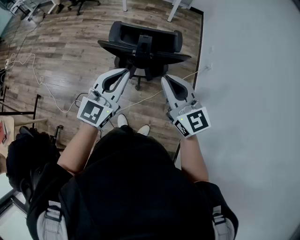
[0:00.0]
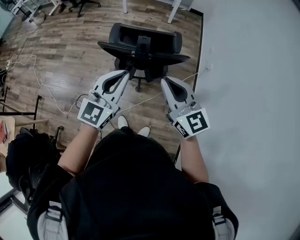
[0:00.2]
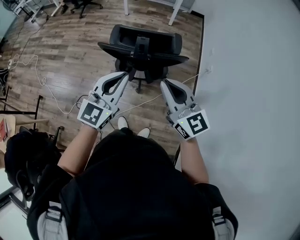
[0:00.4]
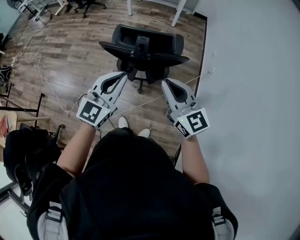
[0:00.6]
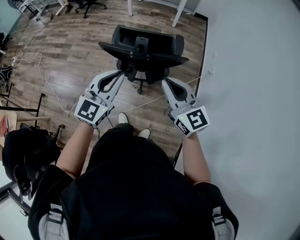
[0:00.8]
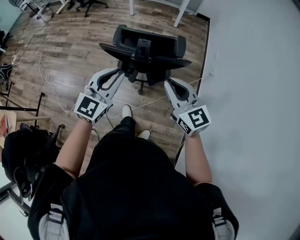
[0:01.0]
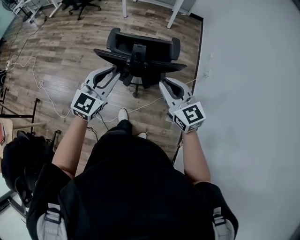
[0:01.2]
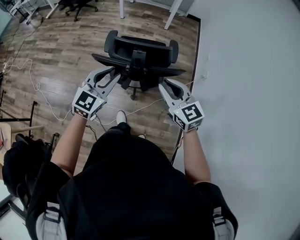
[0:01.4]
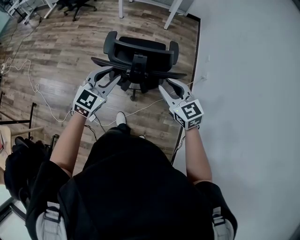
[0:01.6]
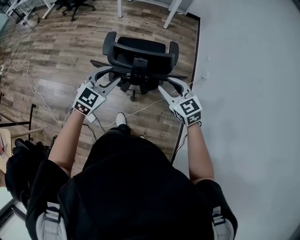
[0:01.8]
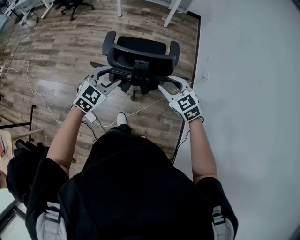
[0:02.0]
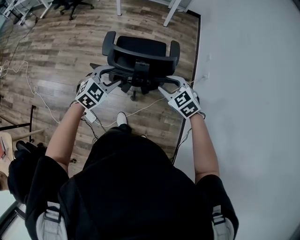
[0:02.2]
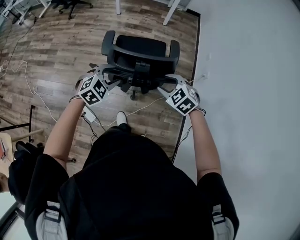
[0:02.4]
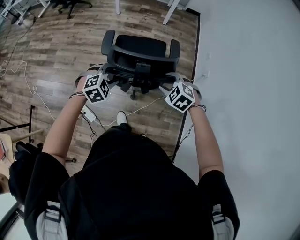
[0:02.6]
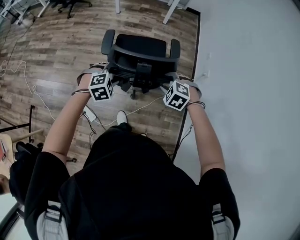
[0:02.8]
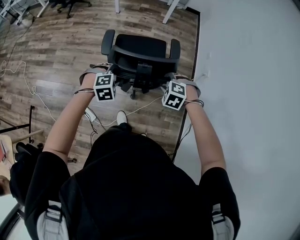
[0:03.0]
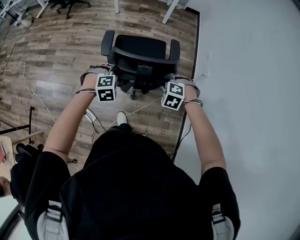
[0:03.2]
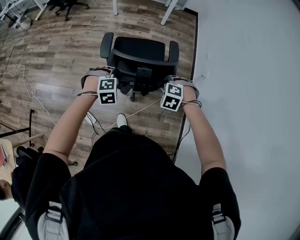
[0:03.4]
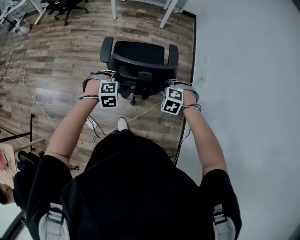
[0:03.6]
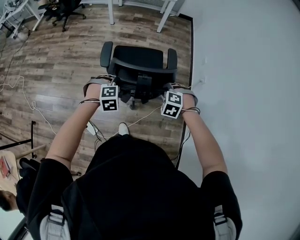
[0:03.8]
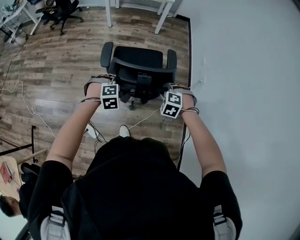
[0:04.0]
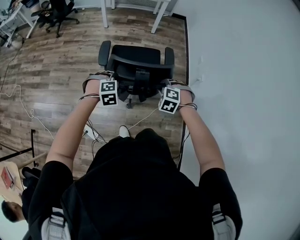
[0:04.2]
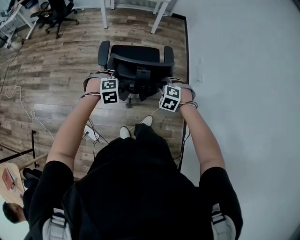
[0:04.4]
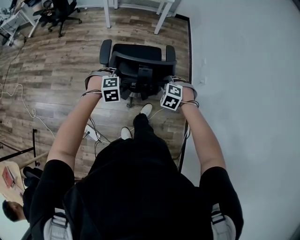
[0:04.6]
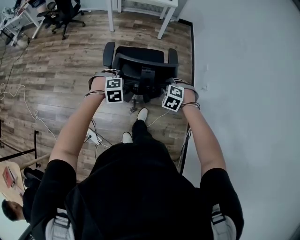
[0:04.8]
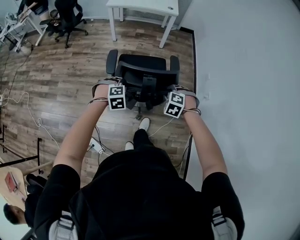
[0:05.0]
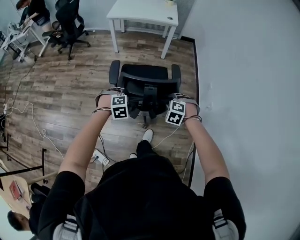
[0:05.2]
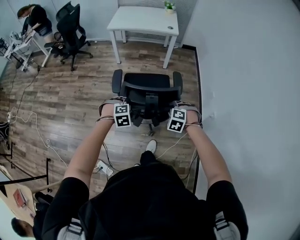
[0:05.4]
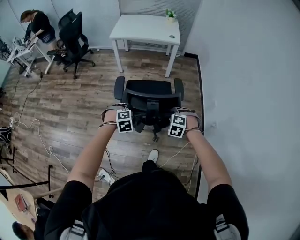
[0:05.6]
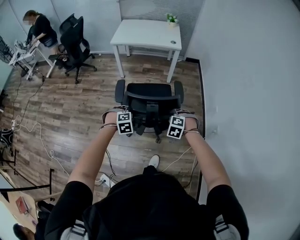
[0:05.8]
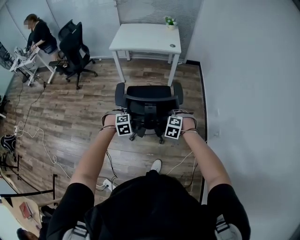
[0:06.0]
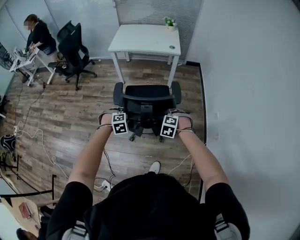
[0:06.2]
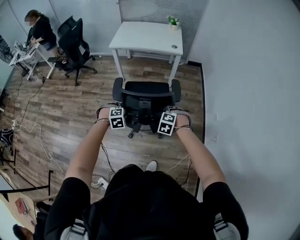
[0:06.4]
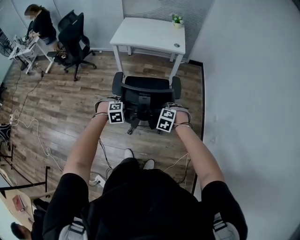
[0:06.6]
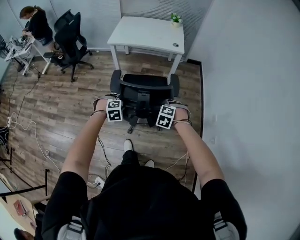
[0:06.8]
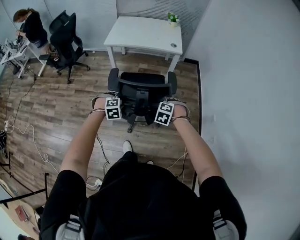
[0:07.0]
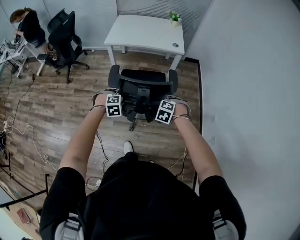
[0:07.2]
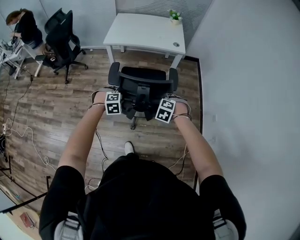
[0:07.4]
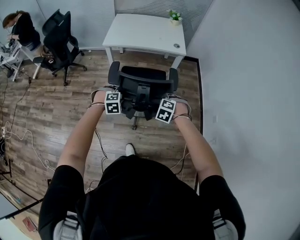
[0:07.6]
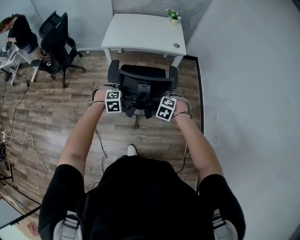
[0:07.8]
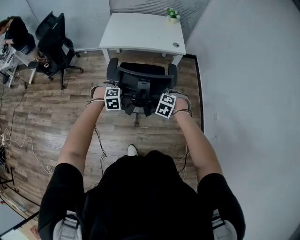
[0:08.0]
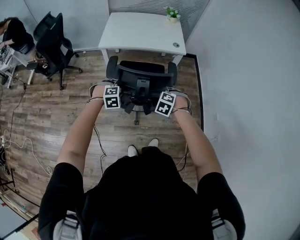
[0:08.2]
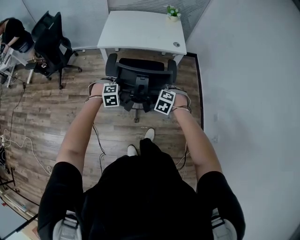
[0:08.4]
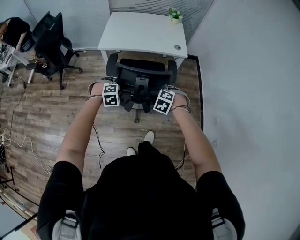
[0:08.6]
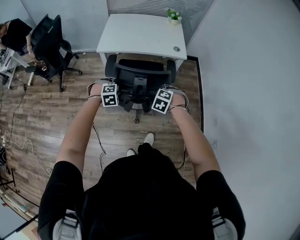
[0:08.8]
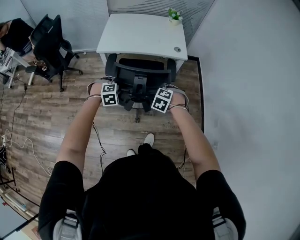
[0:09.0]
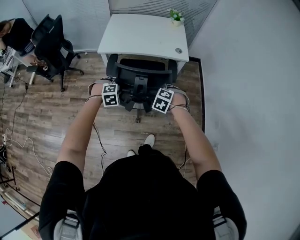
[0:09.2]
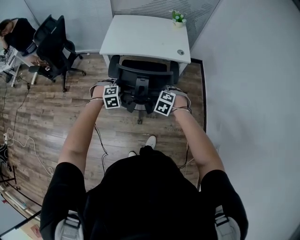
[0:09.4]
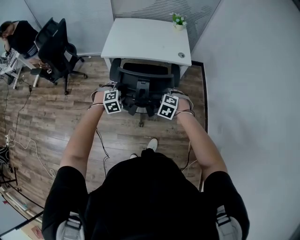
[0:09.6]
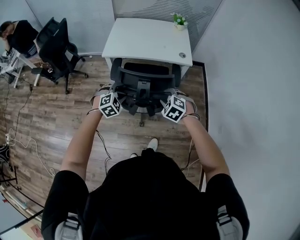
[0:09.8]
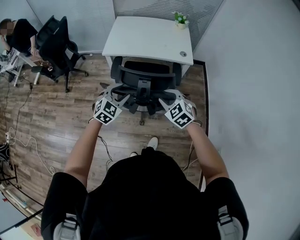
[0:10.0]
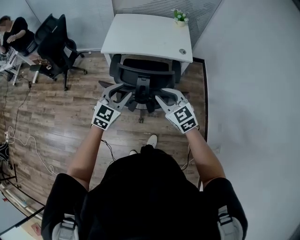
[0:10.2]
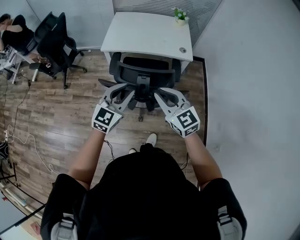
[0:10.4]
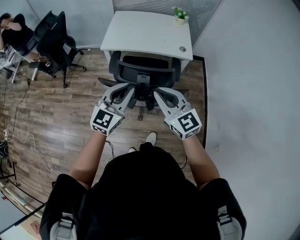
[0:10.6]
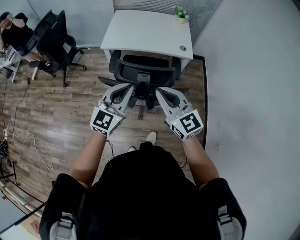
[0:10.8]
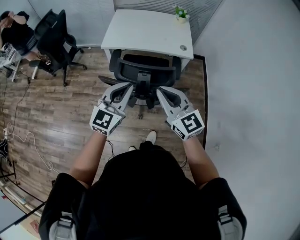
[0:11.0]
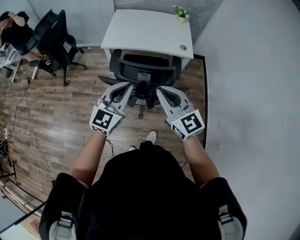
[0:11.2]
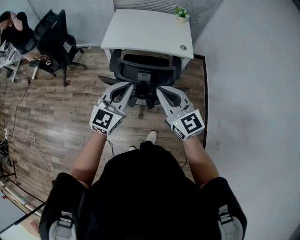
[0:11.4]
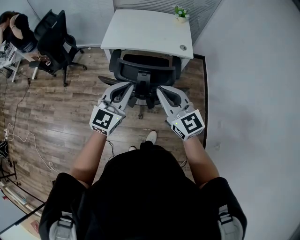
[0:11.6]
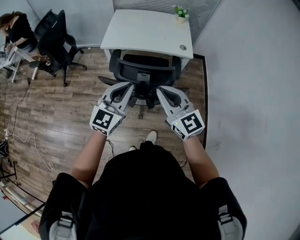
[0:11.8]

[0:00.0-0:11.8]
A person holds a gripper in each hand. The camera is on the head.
0:00.0 to 0:01.4: Both grippers move forward and downward, about 10 cm. The left gripper opens.
0:01.4 to 0:03.0: The grippers both shift downward and forward by approximately 20 cm. The right gripper angles its fingers downward, by some 50 degrees, and opens; the left gripper points its fingers roughly 50 degrees further downward, and opens up.
0:03.0 to 0:04.4: The two grippers go some 5 cm forward. The left gripper closes up.
0:04.4 to 0:06.0: Both grippers move forward, some 30 cm.
0:06.0 to 0:07.4: Both grippers travel together forward and to the left, about 25 cm.
0:07.4 to 0:08.8: The grippers both shift forward and to the left by some 20 cm.
0:08.8 to 0:10.4: Both grippers travel together upward, roughly 20 cm. The right gripper angles its fingers upward, by approximately 50 degrees, while the left gripper angles its fingers upward, by about 50 degrees.
0:10.4 to 0:11.8: The left gripper closes its fingers, while the right gripper moves some 5 cm.

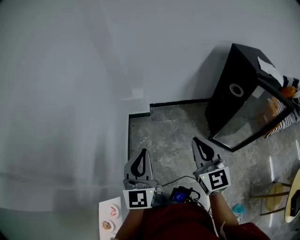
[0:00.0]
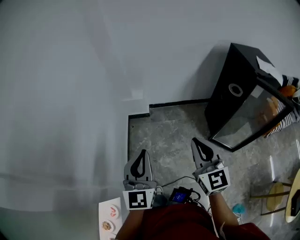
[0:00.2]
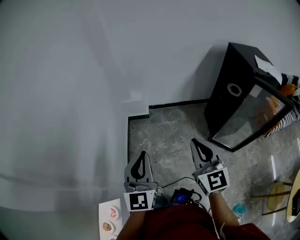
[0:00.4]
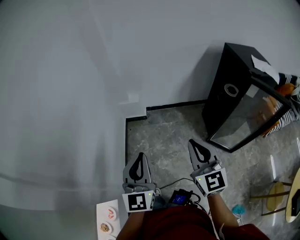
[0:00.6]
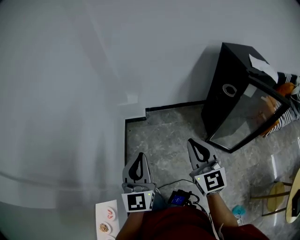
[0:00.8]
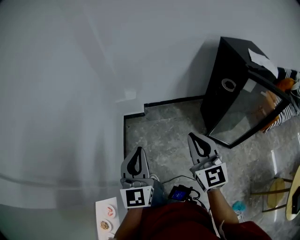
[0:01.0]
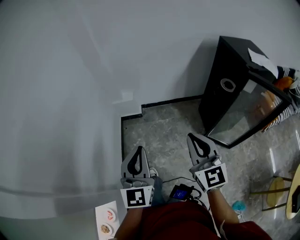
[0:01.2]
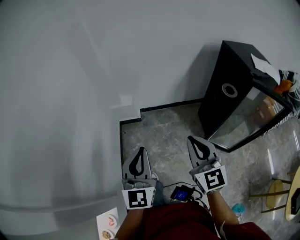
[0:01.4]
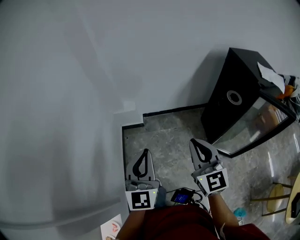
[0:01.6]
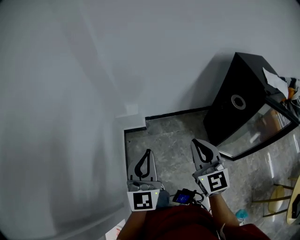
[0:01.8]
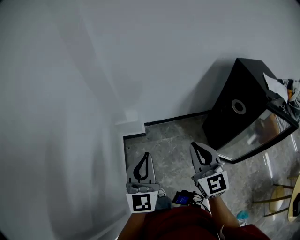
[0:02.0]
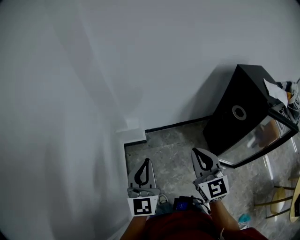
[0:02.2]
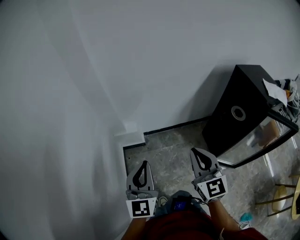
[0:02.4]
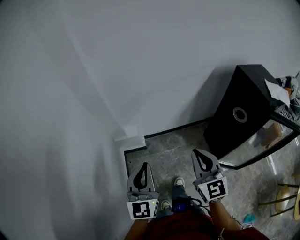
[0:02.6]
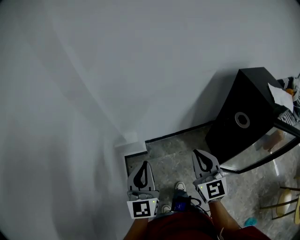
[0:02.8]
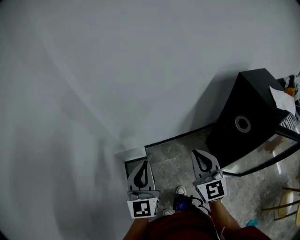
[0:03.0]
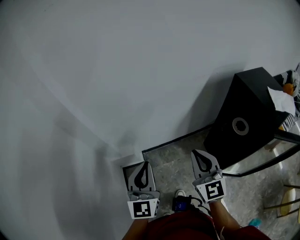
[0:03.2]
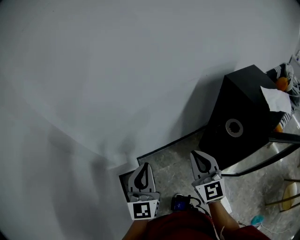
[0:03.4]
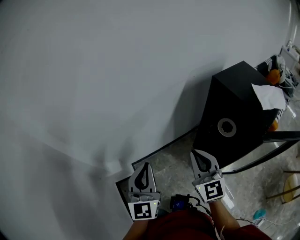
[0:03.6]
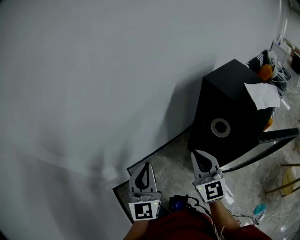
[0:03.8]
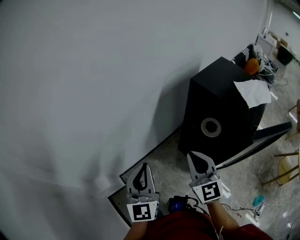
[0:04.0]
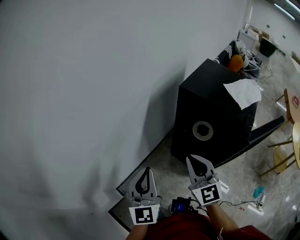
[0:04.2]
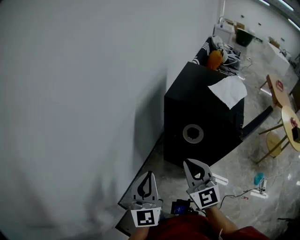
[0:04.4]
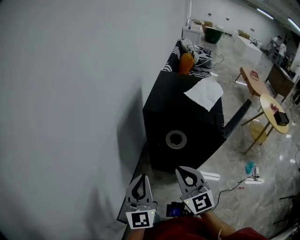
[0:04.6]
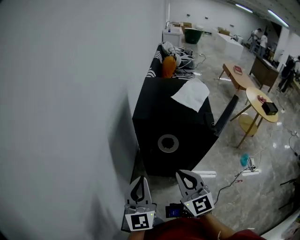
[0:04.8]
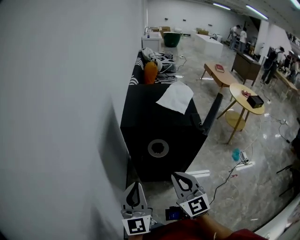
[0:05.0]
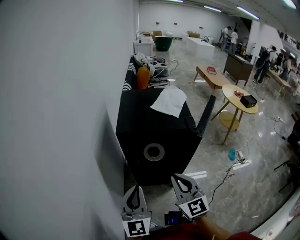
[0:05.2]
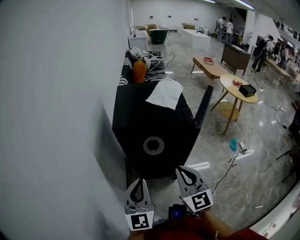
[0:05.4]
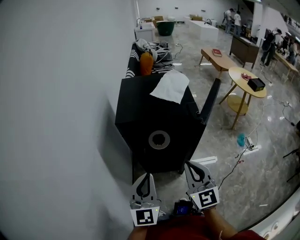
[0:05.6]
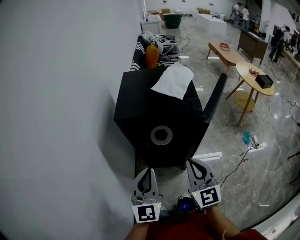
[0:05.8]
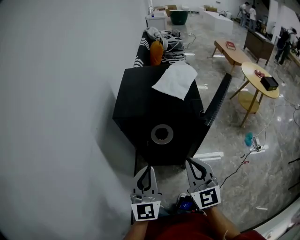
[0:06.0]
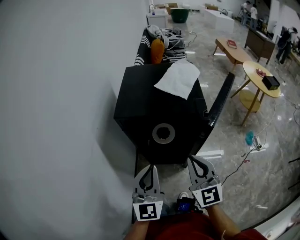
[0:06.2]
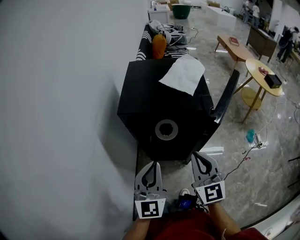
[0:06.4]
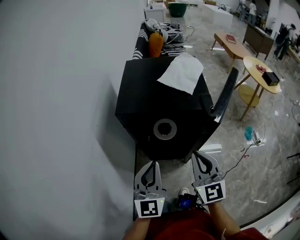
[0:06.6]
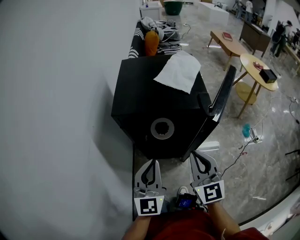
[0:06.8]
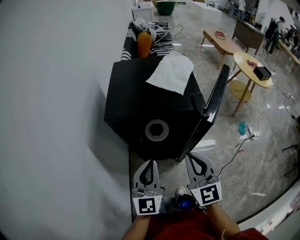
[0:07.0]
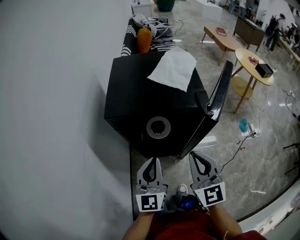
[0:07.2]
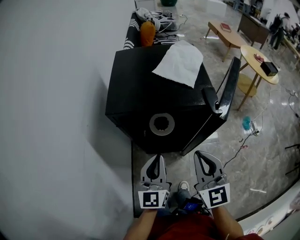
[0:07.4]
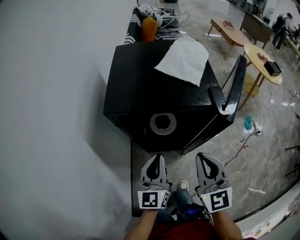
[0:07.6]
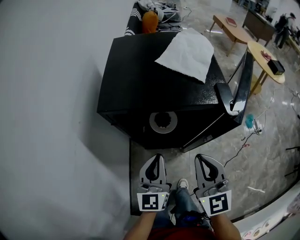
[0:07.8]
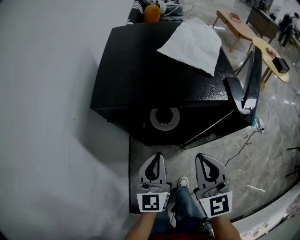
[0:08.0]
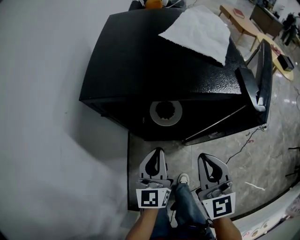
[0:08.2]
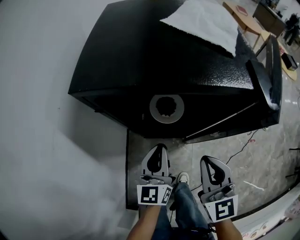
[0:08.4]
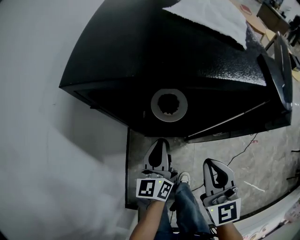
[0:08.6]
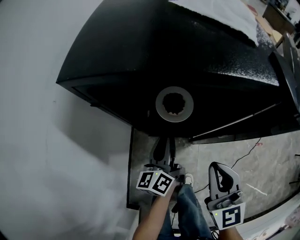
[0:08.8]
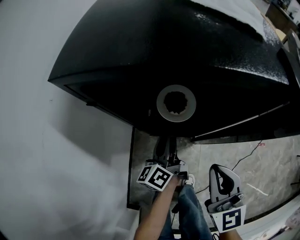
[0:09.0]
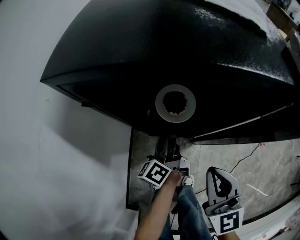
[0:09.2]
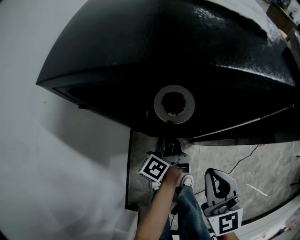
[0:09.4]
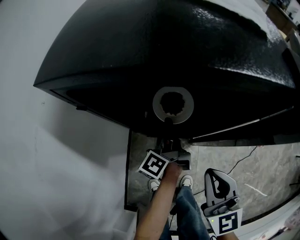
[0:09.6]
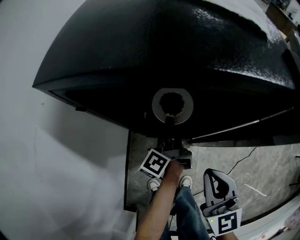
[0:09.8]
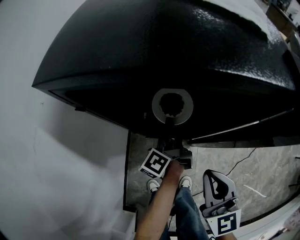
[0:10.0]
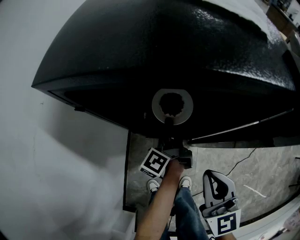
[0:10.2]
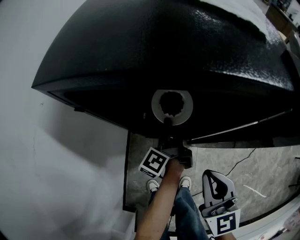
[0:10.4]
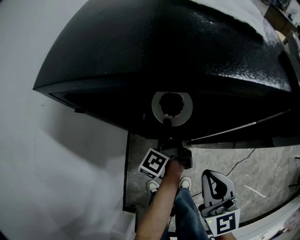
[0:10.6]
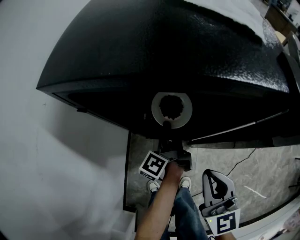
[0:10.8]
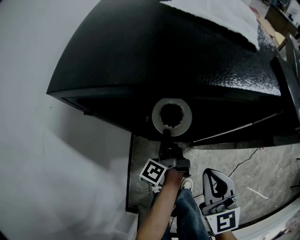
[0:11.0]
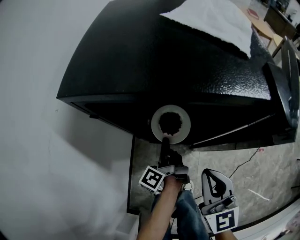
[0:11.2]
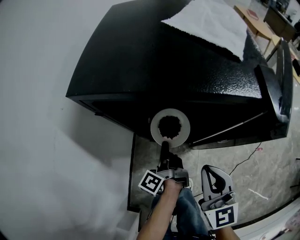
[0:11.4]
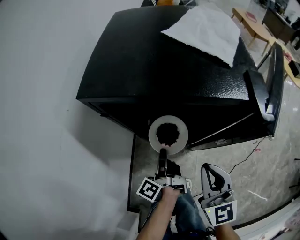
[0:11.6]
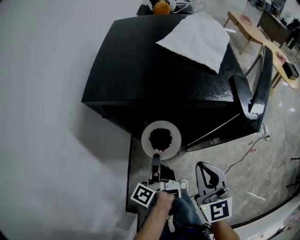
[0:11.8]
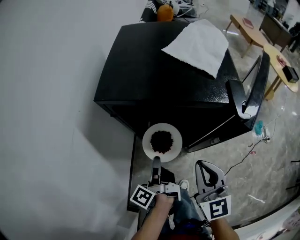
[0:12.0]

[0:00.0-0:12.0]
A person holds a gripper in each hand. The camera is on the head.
0:00.0 to 0:01.6: The left gripper shifts some 15 cm forward and to the right; the right gripper moves forward, about 15 cm.
0:01.6 to 0:03.0: Both grippers travel together forward, roughly 25 cm.
0:03.0 to 0:04.4: The left gripper shifts by roughly 40 cm, and rotates about 40 degrees, while the right gripper moves roughly 30 cm, and changes its angle by about 40 degrees.
0:04.4 to 0:06.0: The right gripper ends up roughly 10 cm from where it was, and turns by approximately 30 degrees, while the left gripper moves roughly 15 cm, and rotates about 30 degrees.
0:06.0 to 0:07.6: The right gripper shifts by about 5 cm. Meanwhile the left gripper goes approximately 15 cm downward and forward.
0:07.6 to 0:09.0: The right gripper moves downward, approximately 20 cm. The left gripper shifts roughly 25 cm downward and forward, twists roughly 50 degrees counterclockwise, seen from behind, and opens.
0:09.0 to 0:10.4: The left gripper travels forward by approximately 5 cm, and changes its angle by approximately 20 degrees.
0:10.4 to 0:12.0: The right gripper heads upward, covering some 10 cm. Meanwhile the left gripper goes some 20 cm backward and upward.
